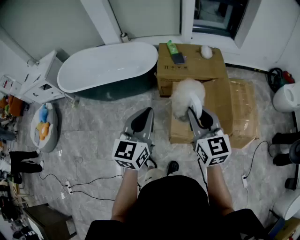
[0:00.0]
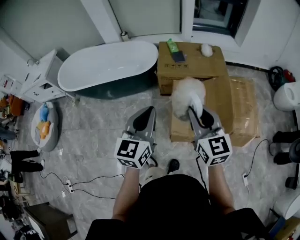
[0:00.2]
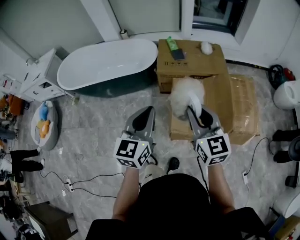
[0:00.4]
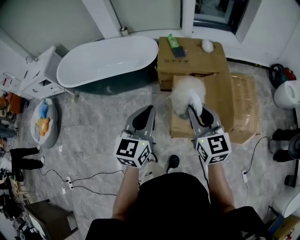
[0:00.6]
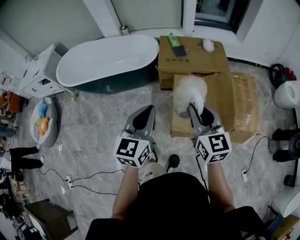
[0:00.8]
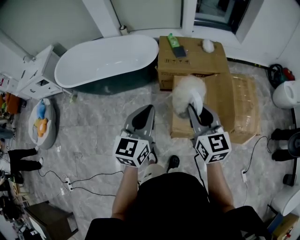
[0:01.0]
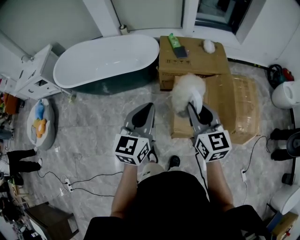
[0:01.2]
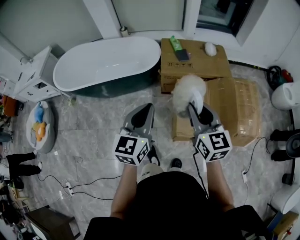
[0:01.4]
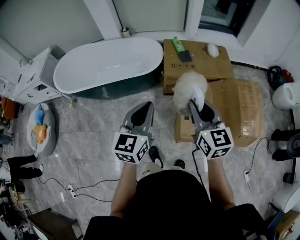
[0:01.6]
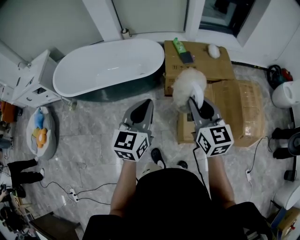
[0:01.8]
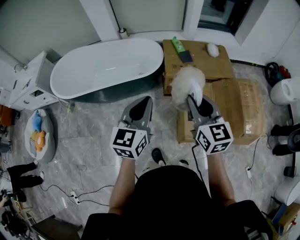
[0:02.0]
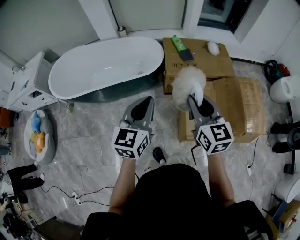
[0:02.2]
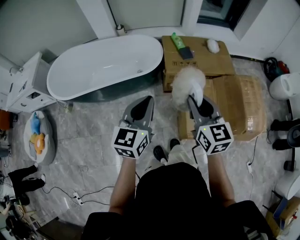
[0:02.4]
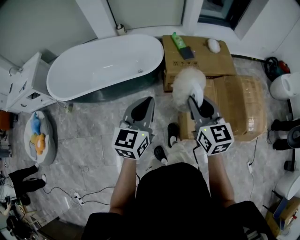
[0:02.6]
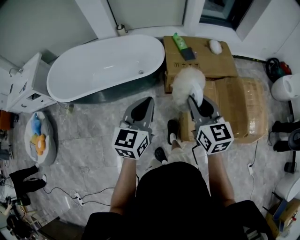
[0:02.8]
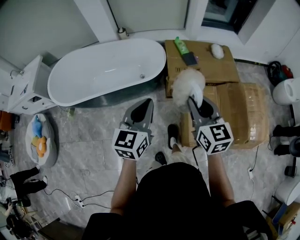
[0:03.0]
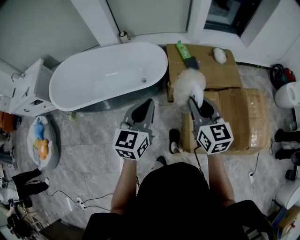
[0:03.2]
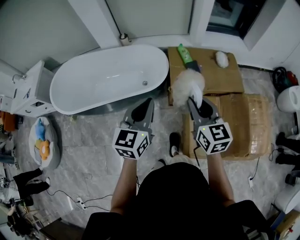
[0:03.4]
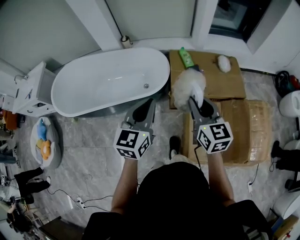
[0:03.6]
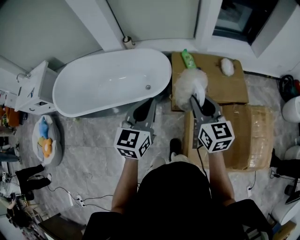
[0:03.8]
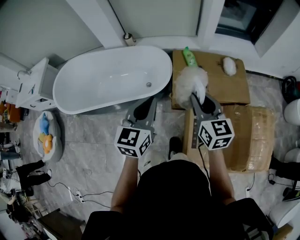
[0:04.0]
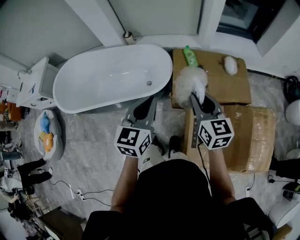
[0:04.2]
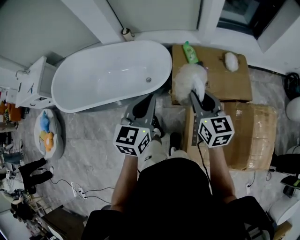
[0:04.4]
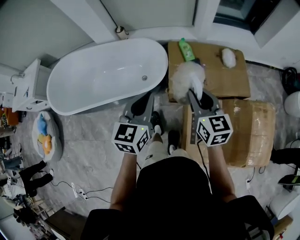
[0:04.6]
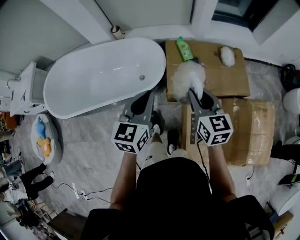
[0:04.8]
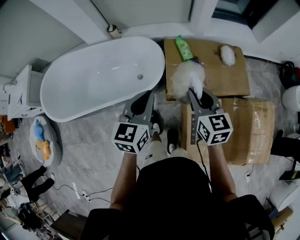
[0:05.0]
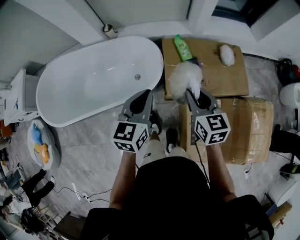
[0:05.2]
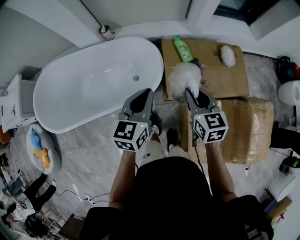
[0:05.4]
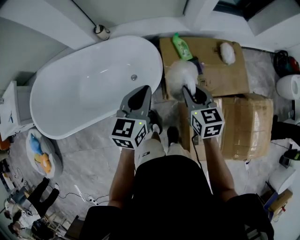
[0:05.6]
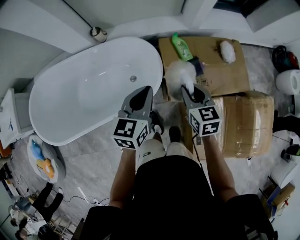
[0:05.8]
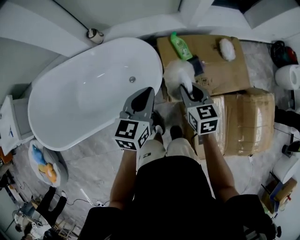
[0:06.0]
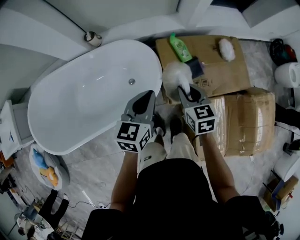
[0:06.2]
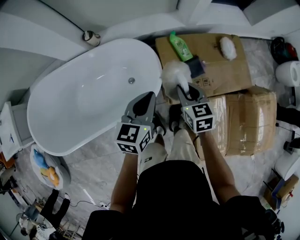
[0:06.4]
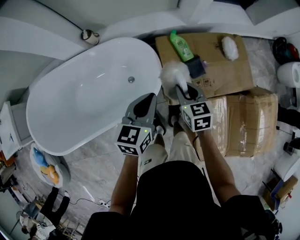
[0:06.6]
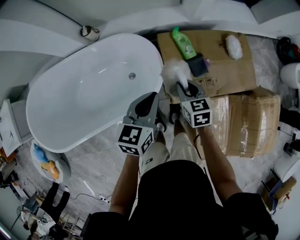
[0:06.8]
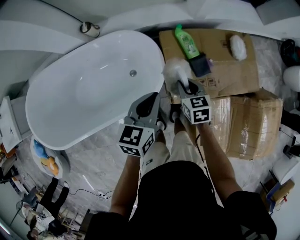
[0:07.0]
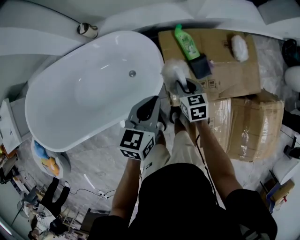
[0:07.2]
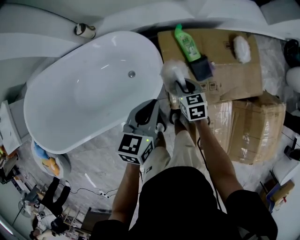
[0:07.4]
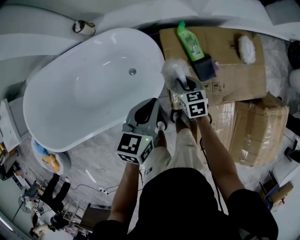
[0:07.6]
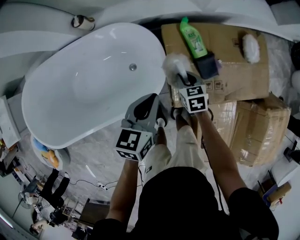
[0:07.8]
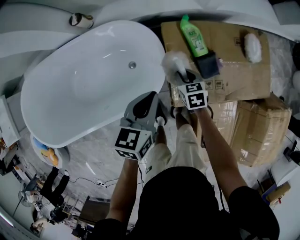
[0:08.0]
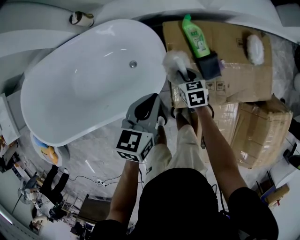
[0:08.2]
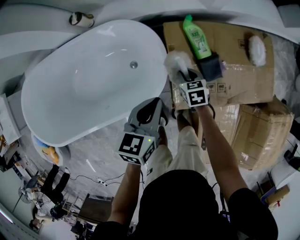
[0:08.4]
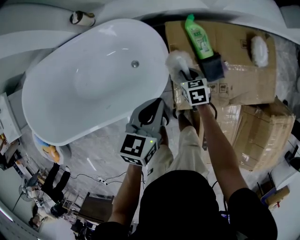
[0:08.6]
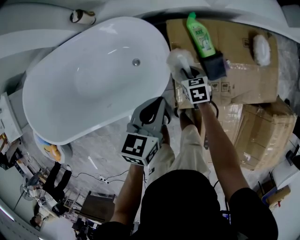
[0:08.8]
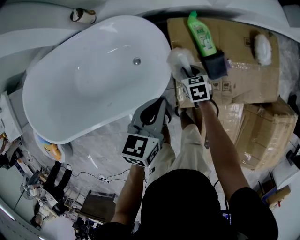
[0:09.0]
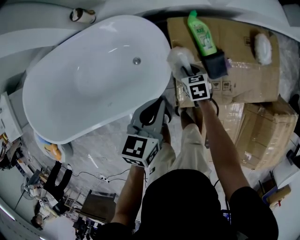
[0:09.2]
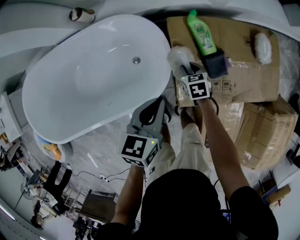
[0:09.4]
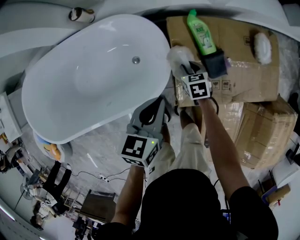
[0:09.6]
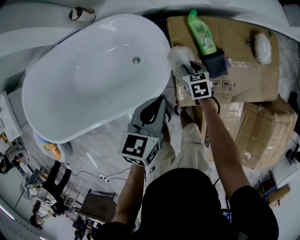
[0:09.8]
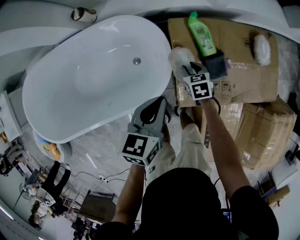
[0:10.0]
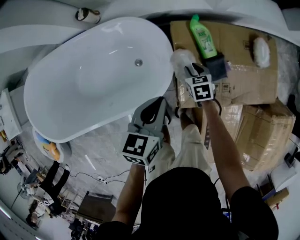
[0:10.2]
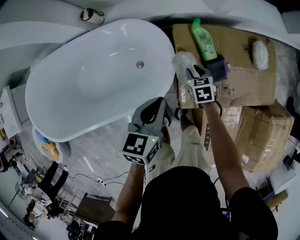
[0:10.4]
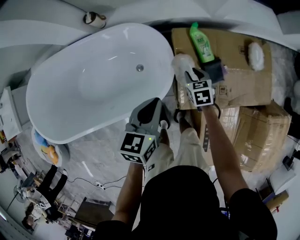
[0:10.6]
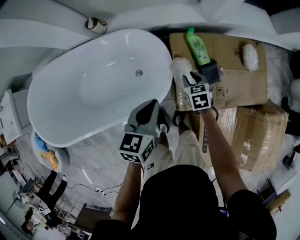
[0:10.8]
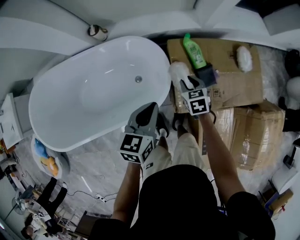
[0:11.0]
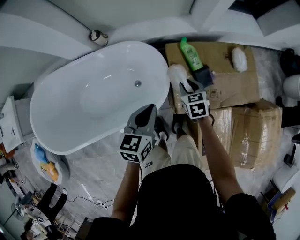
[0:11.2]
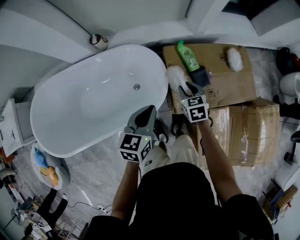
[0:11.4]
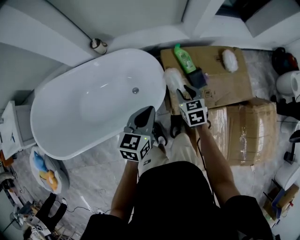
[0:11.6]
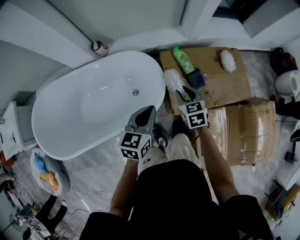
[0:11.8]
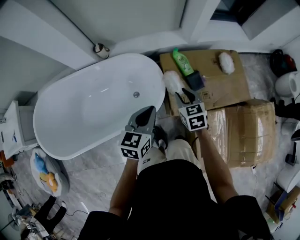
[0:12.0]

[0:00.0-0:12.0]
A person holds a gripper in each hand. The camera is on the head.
0:00.0 to 0:01.6: The two grippers go some 15 cm to the left and forward.
0:01.6 to 0:03.0: The grippers both shift forward and to the left by approximately 15 cm.
0:03.0 to 0:04.4: The grippers both shift forward by roughly 25 cm.
0:04.4 to 0:06.0: The left gripper heads forward and downward, covering about 25 cm, while the right gripper goes some 30 cm forward, downward and to the left, and changes its angle by about 20 degrees.
0:06.0 to 0:07.6: The left gripper moves downward and forward, some 15 cm; the right gripper heads downward and forward, covering approximately 25 cm.
0:07.6 to 0:09.0: The right gripper travels downward by some 10 cm.
0:09.0 to 0:10.4: The grippers move only a little.
0:10.4 to 0:12.0: The left gripper travels upward and backward by roughly 15 cm; the right gripper travels upward and backward by about 25 cm.

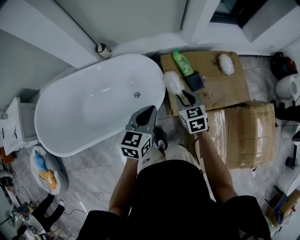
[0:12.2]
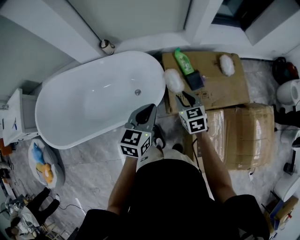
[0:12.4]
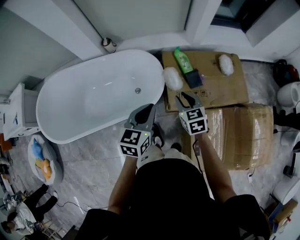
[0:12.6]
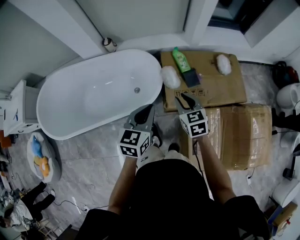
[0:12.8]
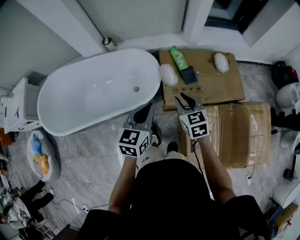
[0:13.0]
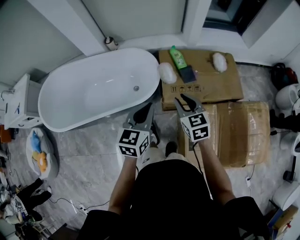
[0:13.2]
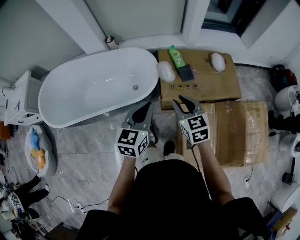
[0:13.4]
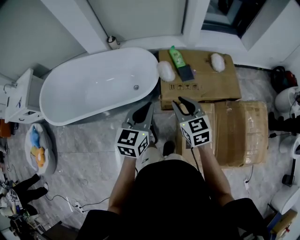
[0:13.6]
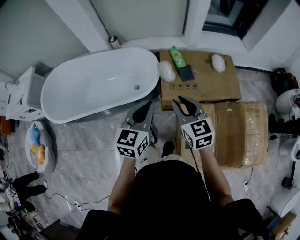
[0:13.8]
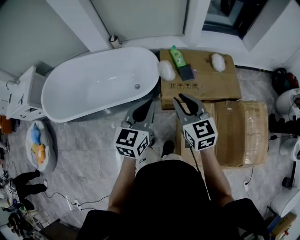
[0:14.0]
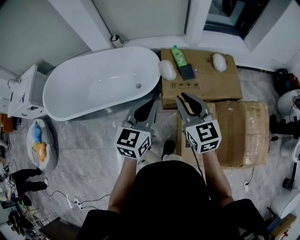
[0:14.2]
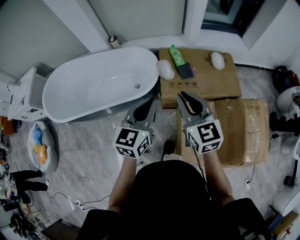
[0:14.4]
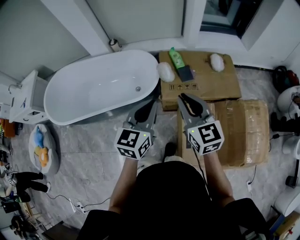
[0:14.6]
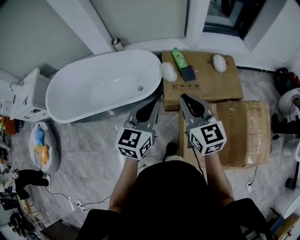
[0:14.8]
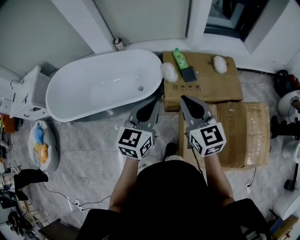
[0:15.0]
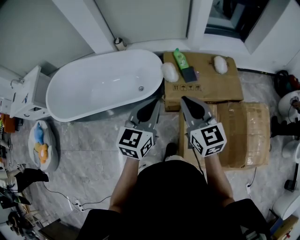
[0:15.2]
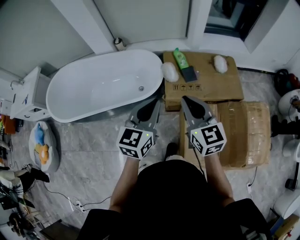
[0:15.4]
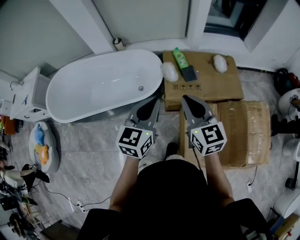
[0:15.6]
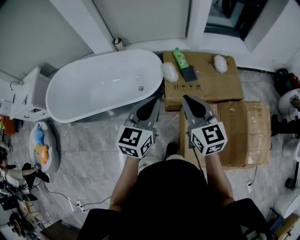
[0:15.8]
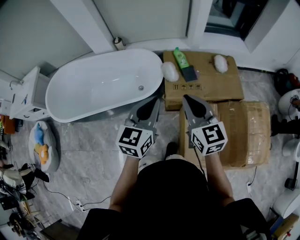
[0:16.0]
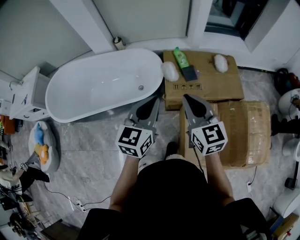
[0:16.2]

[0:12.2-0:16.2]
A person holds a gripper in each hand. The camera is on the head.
0:12.2 to 0:13.6: The left gripper moves backward and to the right, approximately 25 cm, while the right gripper is displaced backward and upward by approximately 25 cm.
0:13.6 to 0:14.8: The right gripper goes about 10 cm upward; the left gripper goes approximately 5 cm upward.
0:14.8 to 0:16.2: The grippers move only a little.

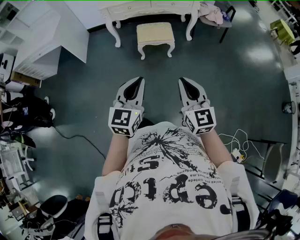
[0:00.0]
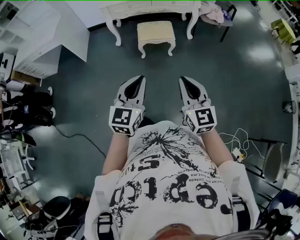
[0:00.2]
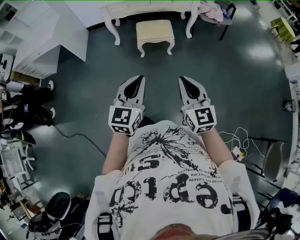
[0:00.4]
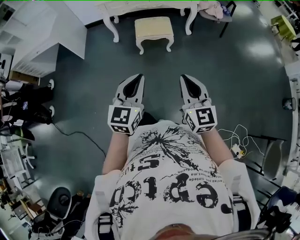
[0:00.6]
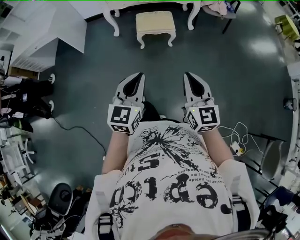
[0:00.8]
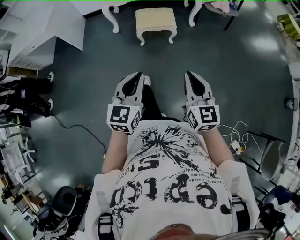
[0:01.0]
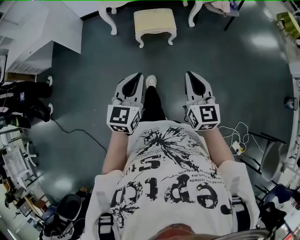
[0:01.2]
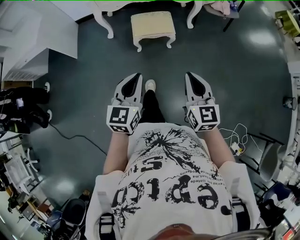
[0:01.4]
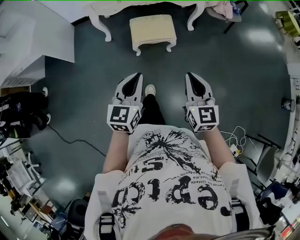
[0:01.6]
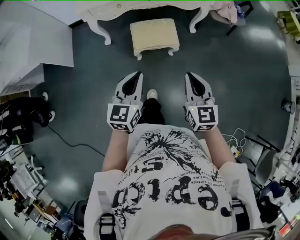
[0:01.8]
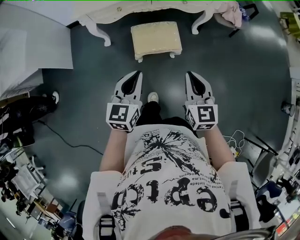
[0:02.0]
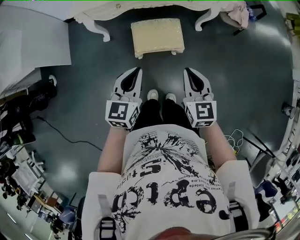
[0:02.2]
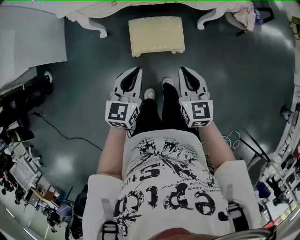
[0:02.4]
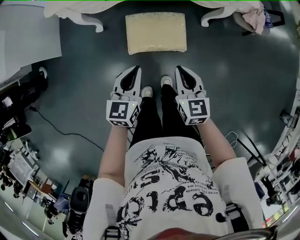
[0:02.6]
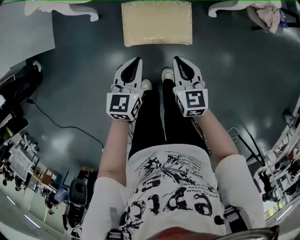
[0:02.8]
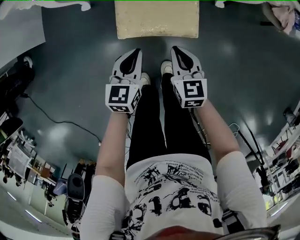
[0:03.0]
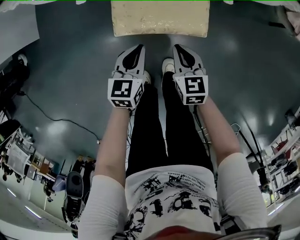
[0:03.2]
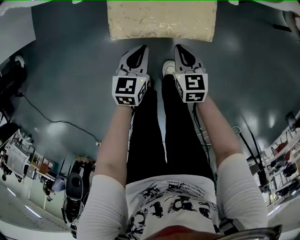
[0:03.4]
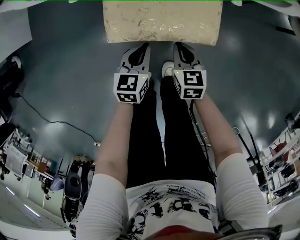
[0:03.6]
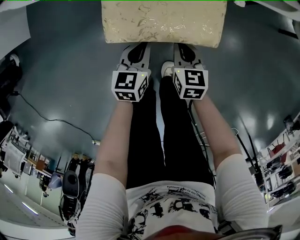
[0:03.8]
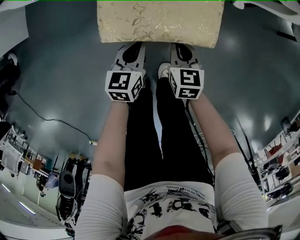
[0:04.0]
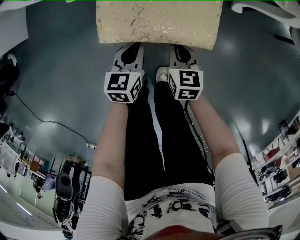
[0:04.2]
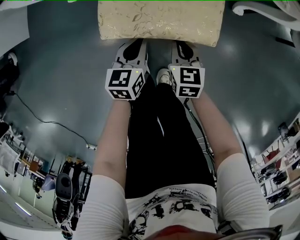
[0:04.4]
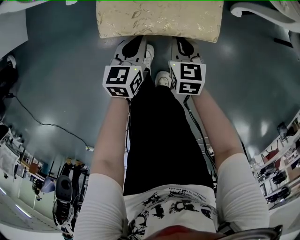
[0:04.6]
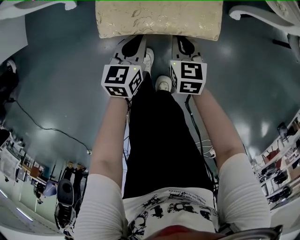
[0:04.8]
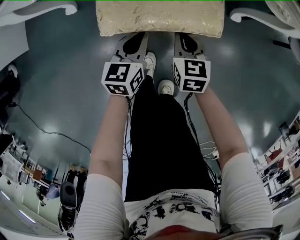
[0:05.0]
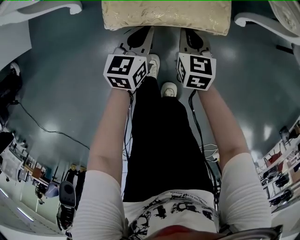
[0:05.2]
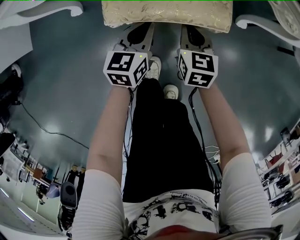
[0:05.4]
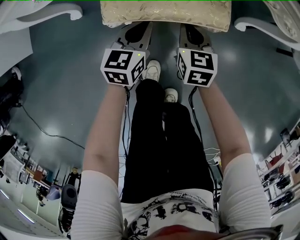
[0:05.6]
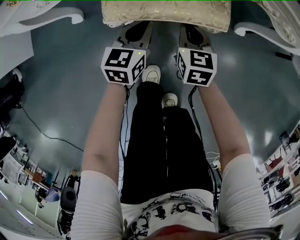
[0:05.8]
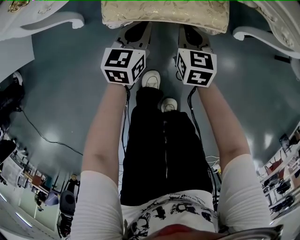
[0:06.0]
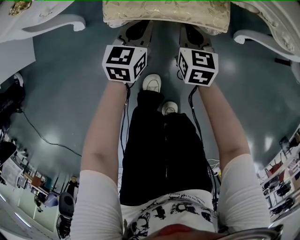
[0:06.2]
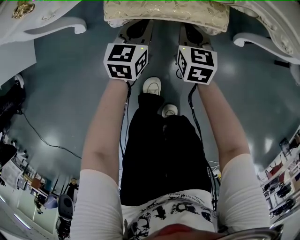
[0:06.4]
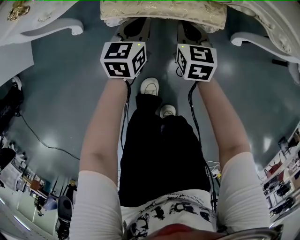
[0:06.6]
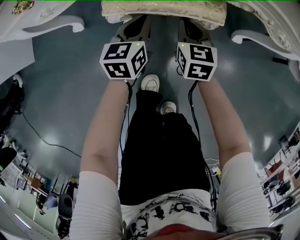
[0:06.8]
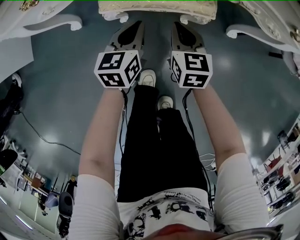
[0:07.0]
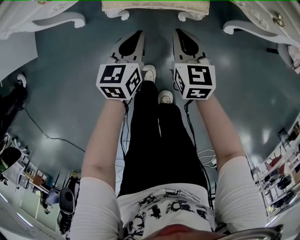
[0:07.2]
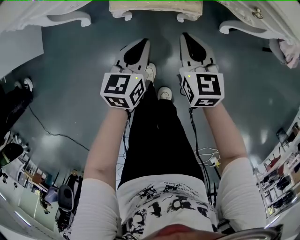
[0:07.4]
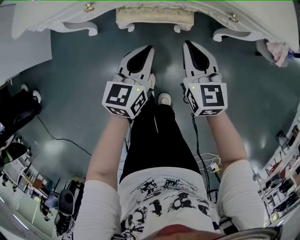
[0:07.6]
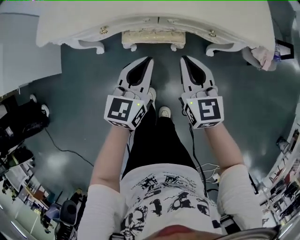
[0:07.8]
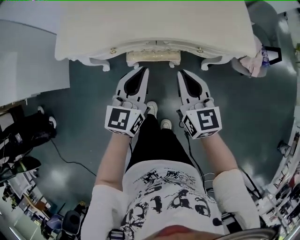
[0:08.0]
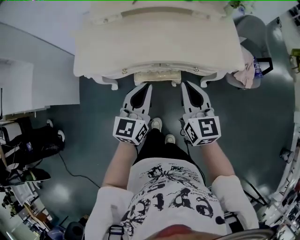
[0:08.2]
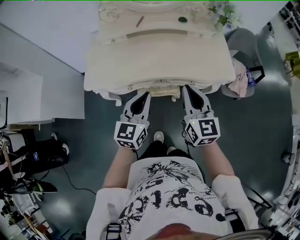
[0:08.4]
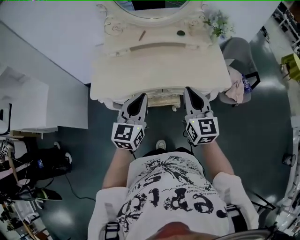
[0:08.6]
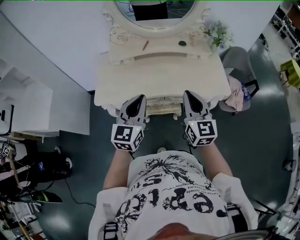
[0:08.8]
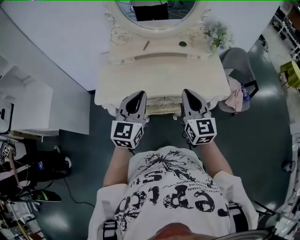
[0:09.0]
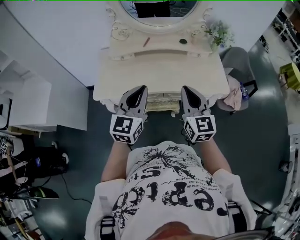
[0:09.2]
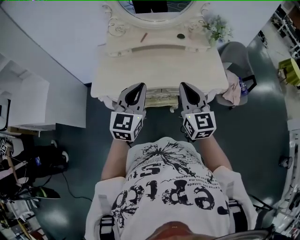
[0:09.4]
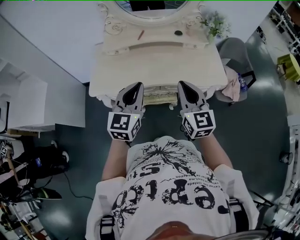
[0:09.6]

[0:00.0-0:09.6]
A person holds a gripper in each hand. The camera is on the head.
0:00.0 to 0:01.6: Both grippers travel together forward, about 25 cm.
0:01.6 to 0:03.2: Both grippers travel together downward and forward, approximately 60 cm. The right gripper swivels roughly 30 degrees. Meanwhile the left gripper changes its angle by roughly 20 degrees.
0:03.2 to 0:04.8: The right gripper moves forward and downward, approximately 15 cm; the left gripper heads downward and forward, covering approximately 15 cm.
0:04.8 to 0:06.4: The grippers both shift forward by some 20 cm.
0:06.4 to 0:08.0: Both grippers travel together upward, some 50 cm. The right gripper turns by some 20 degrees.
0:08.0 to 0:09.6: The two grippers go about 20 cm upward.
